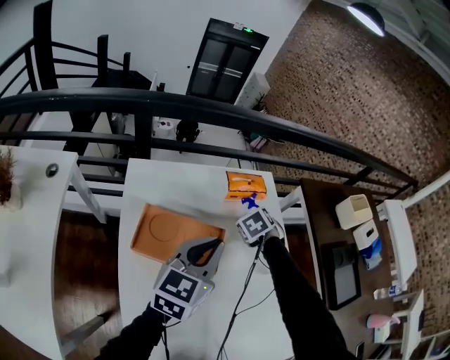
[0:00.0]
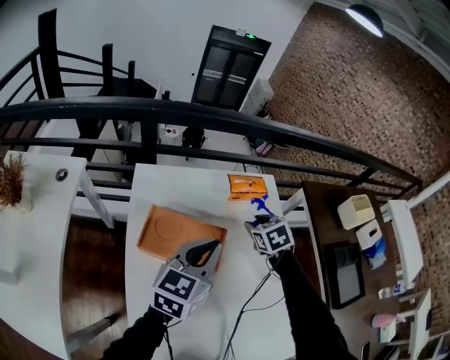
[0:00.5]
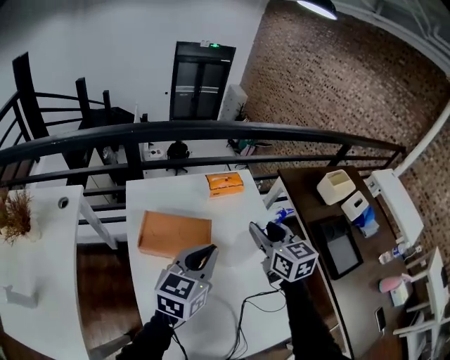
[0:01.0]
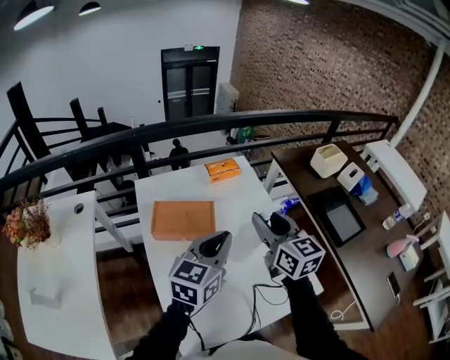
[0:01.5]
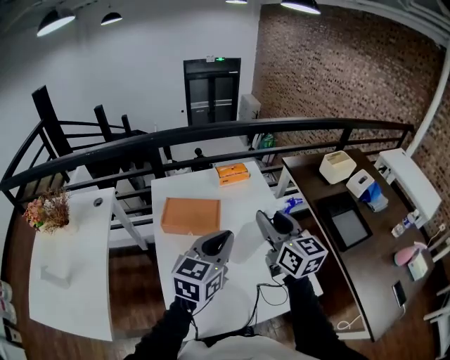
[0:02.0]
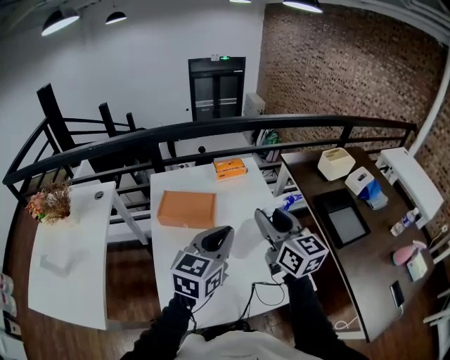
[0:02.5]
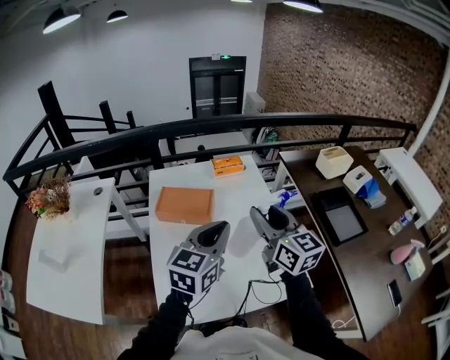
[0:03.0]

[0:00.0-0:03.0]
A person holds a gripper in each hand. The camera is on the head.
0:00.0 to 0:01.5: The right gripper shifts roughly 50 cm backward and upward, and points its fingers approximately 60 degrees further upward. The left gripper shifts approximately 35 cm backward, upward and to the right.
0:01.5 to 0:03.0: Both grippers travel together backward and to the right, approximately 20 cm.

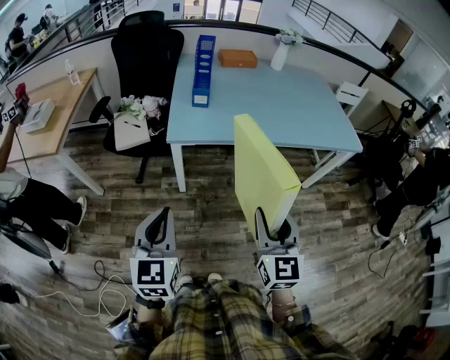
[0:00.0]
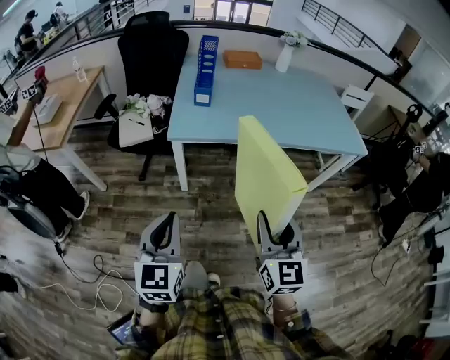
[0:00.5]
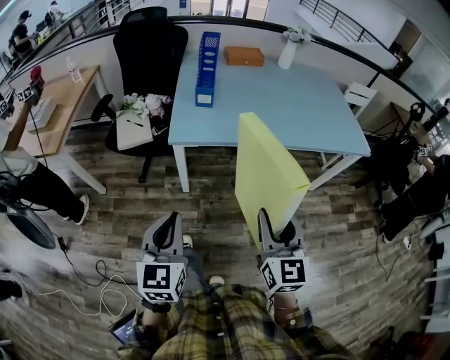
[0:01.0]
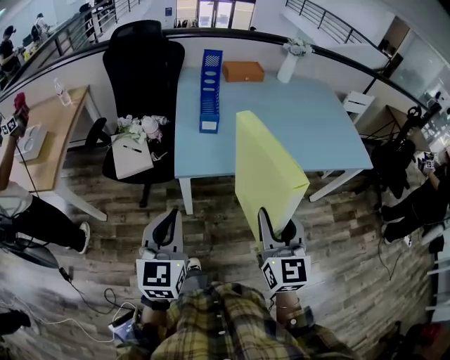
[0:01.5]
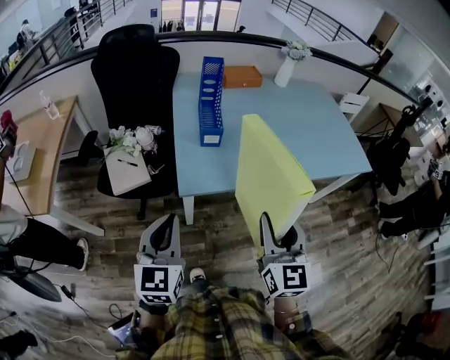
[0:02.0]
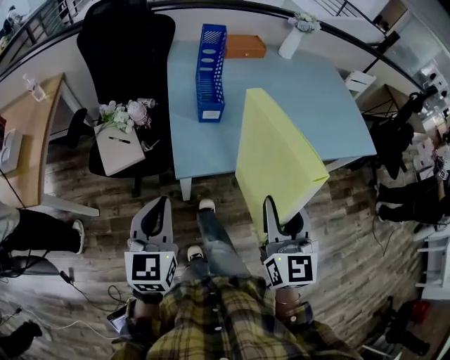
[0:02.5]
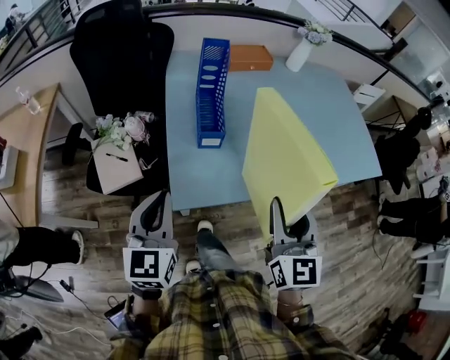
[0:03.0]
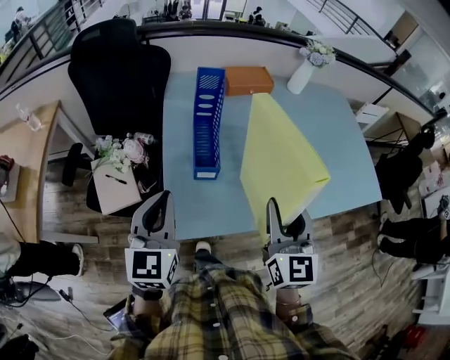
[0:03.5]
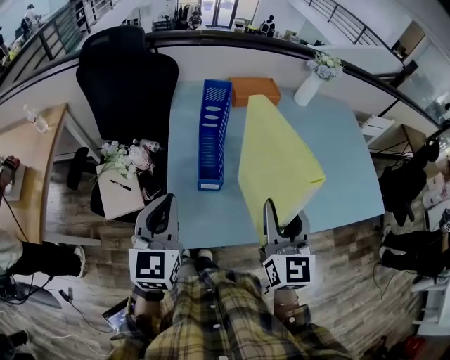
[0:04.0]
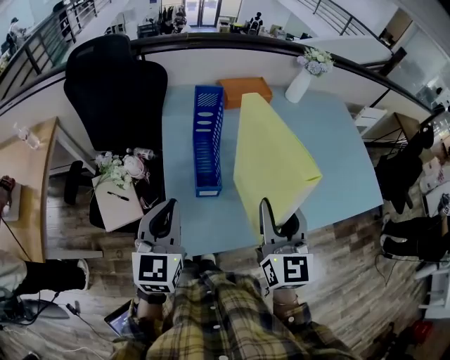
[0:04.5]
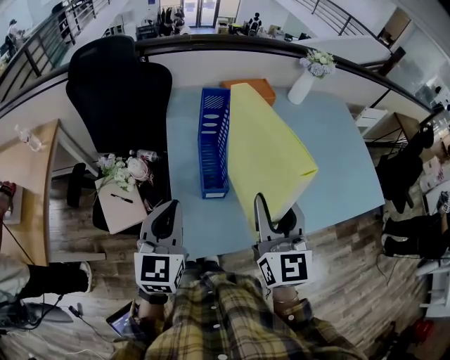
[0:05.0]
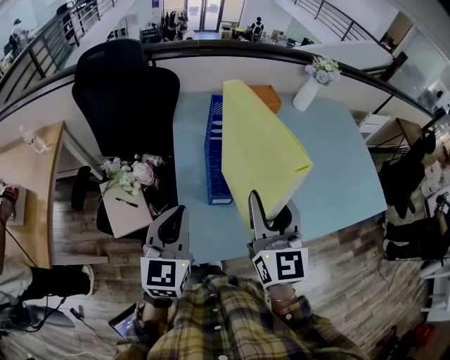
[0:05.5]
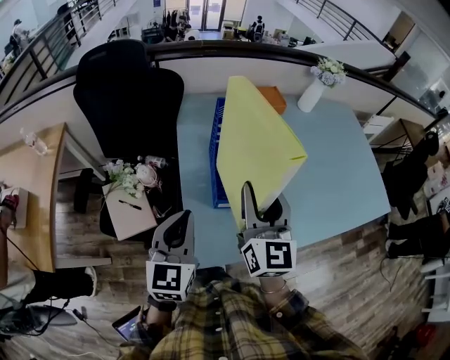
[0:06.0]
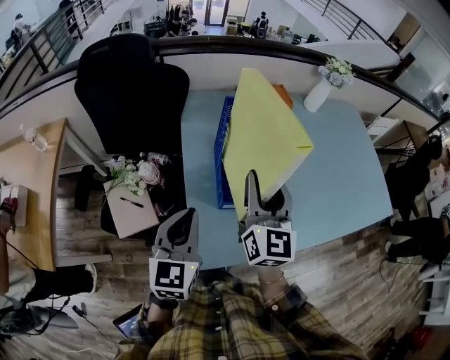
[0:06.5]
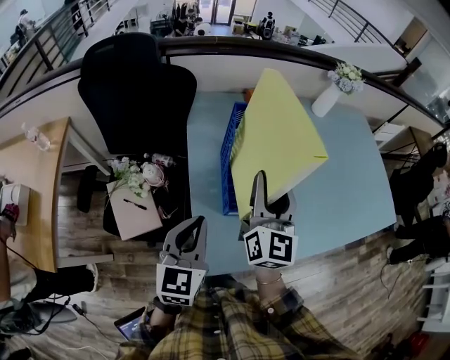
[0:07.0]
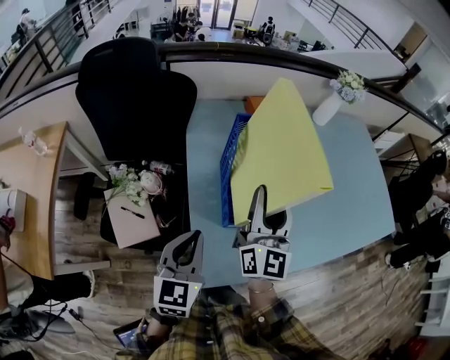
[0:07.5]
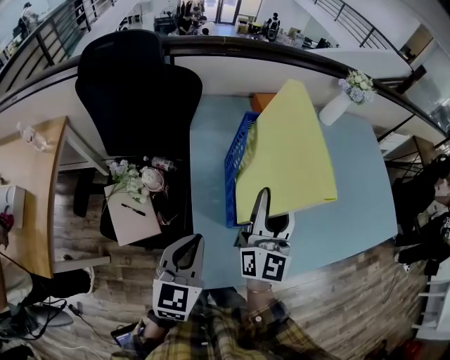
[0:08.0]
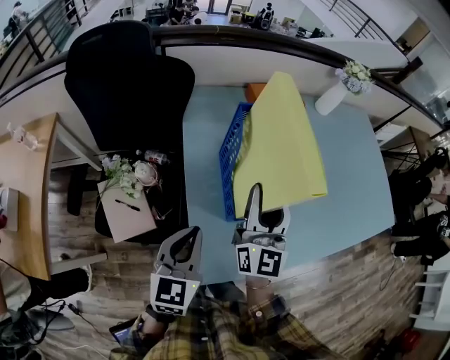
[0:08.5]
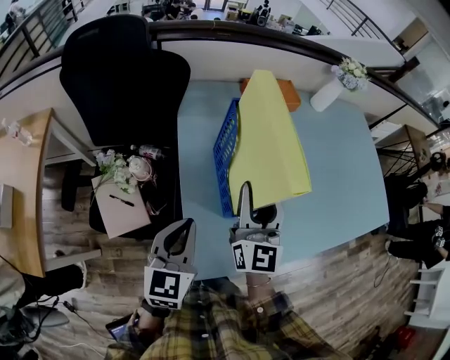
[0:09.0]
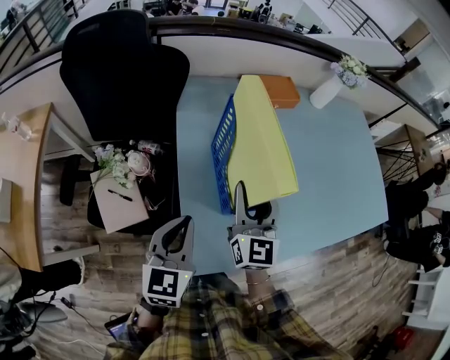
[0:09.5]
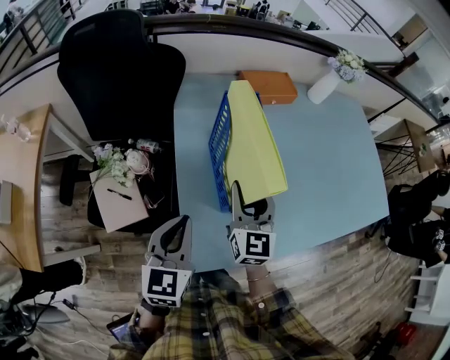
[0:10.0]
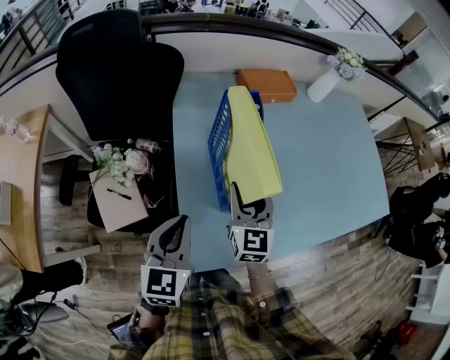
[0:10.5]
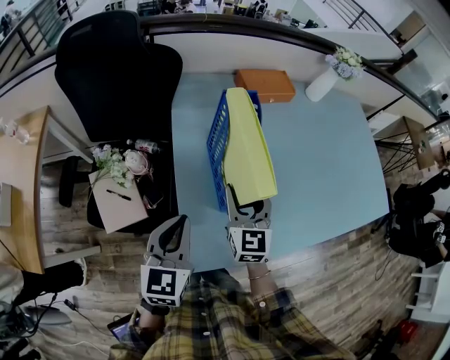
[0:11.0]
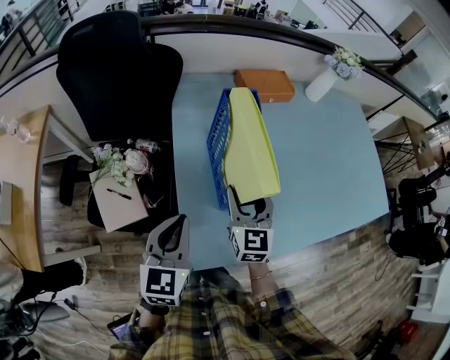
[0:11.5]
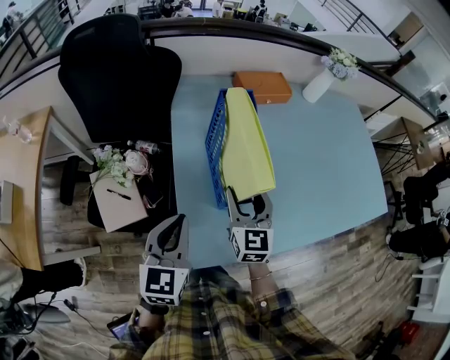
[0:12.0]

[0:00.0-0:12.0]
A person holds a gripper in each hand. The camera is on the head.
0:00.0 to 0:02.0: The grippers both shift forward and to the left by some 25 cm.
0:02.0 to 0:04.0: Both grippers move forward, some 25 cm.
0:04.0 to 0:06.0: The right gripper heads to the left and forward, covering roughly 15 cm.
0:06.0 to 0:08.0: The left gripper goes roughly 5 cm downward; the right gripper moves forward, some 5 cm.
0:08.0 to 0:10.0: The right gripper is displaced downward by some 10 cm, and swivels about 30 degrees.
0:10.0 to 0:12.0: The grippers stay close to where they were, moving slightly.

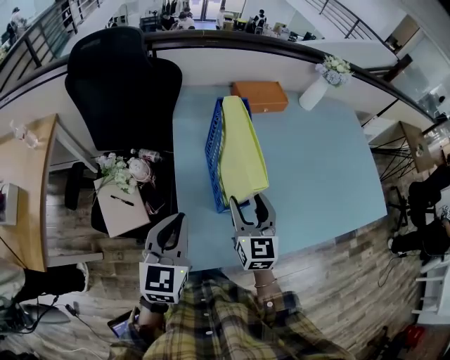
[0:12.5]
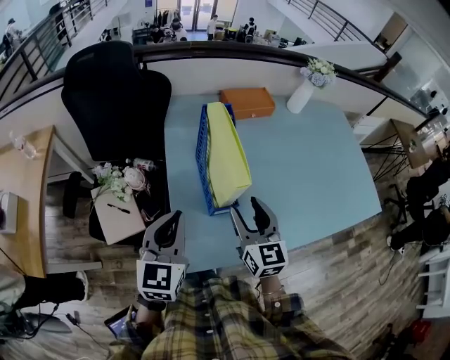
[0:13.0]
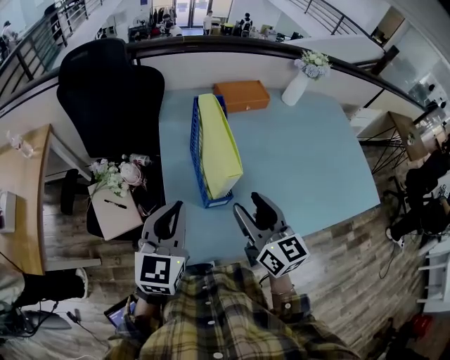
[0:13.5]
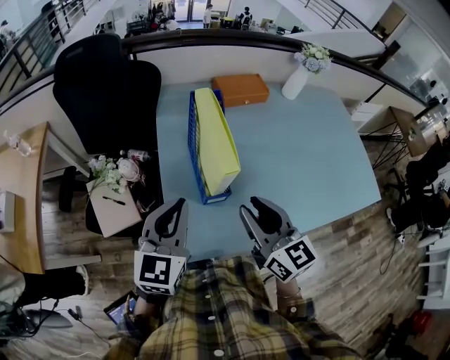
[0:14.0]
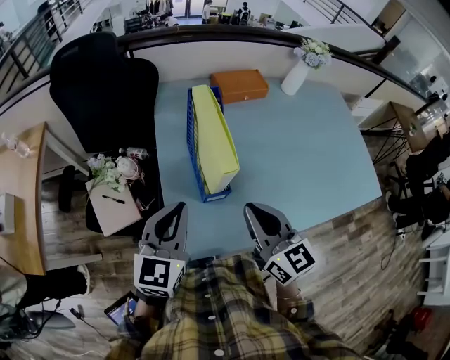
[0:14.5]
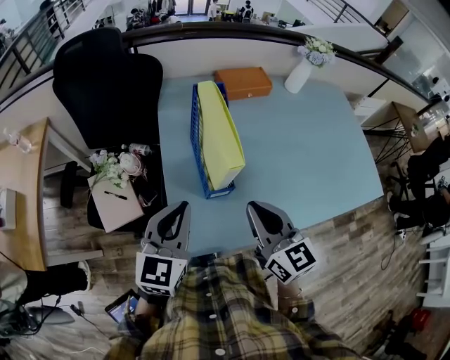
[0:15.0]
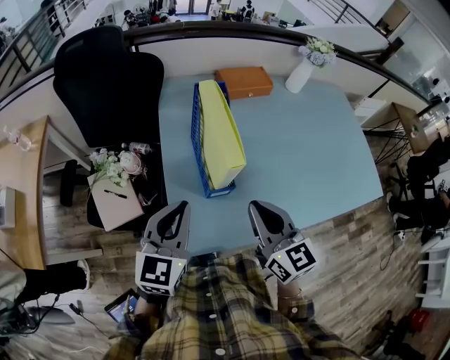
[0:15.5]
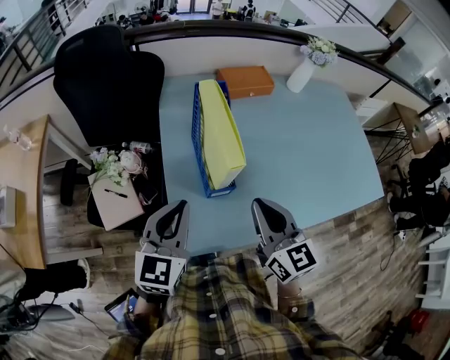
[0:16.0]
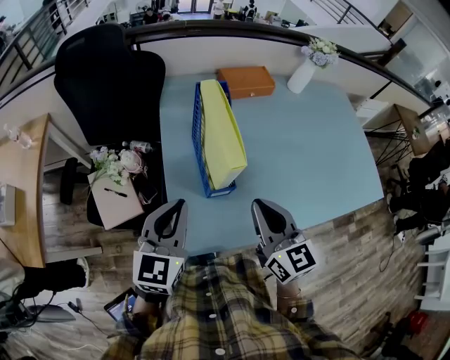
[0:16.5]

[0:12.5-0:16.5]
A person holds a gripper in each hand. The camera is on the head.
0:12.5 to 0:14.5: The left gripper travels to the right by roughly 5 cm; the right gripper heads upward and backward, covering approximately 10 cm, rotates some 20 degrees, and closes.
0:14.5 to 0:16.5: The grippers stay close to where they were, moving slightly.

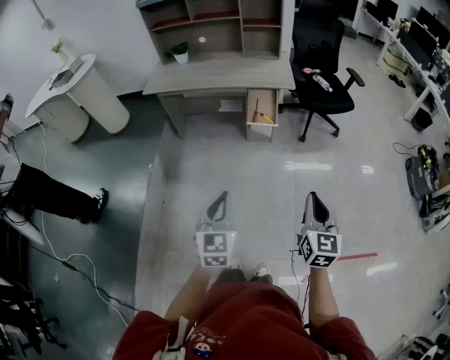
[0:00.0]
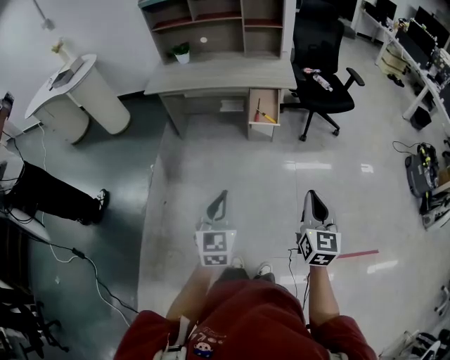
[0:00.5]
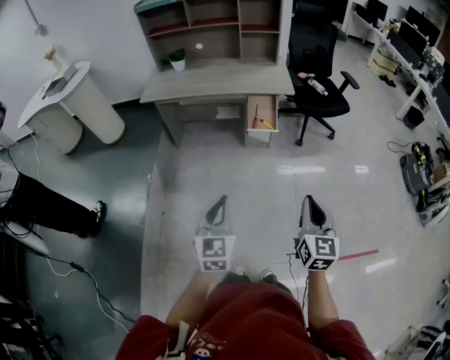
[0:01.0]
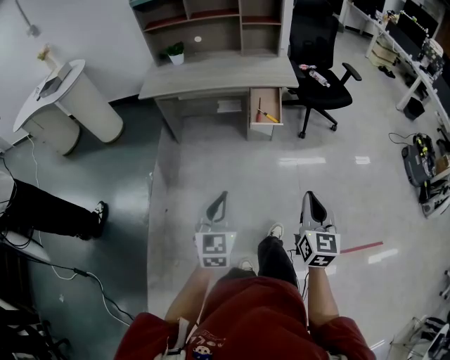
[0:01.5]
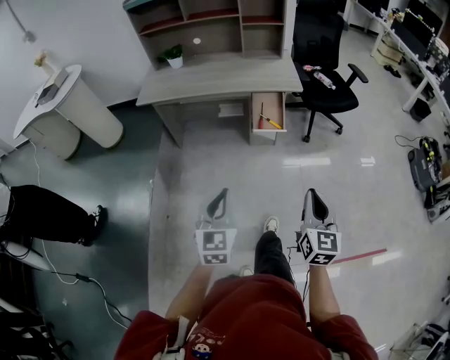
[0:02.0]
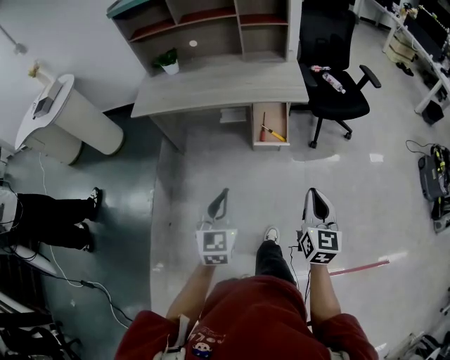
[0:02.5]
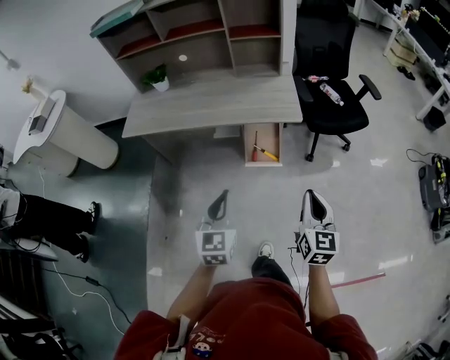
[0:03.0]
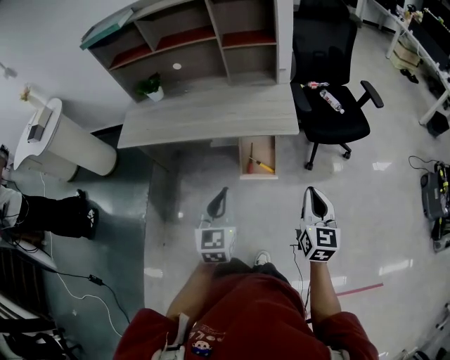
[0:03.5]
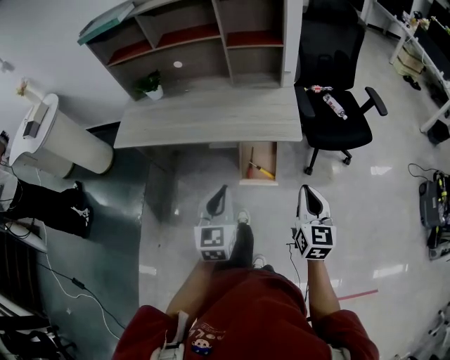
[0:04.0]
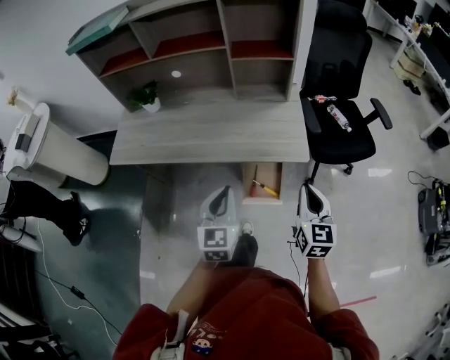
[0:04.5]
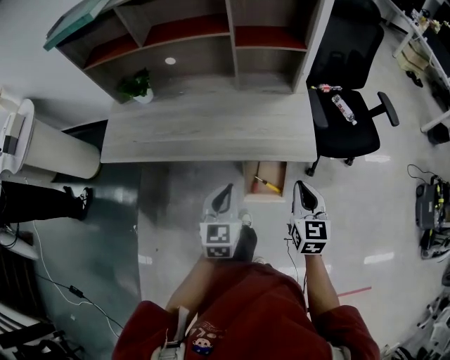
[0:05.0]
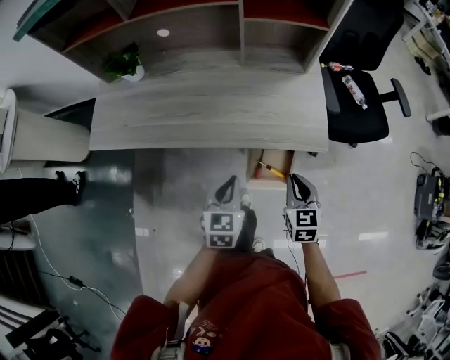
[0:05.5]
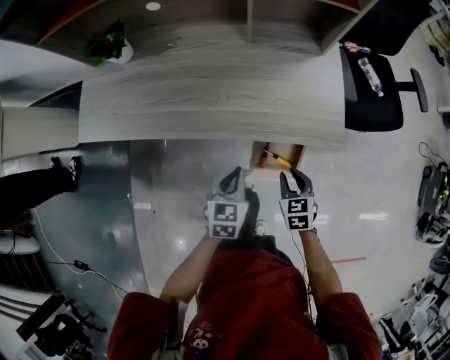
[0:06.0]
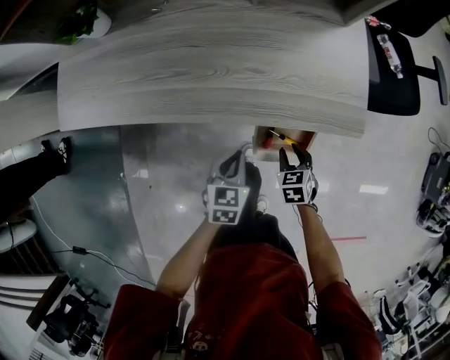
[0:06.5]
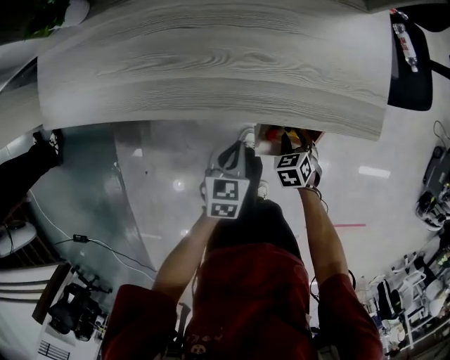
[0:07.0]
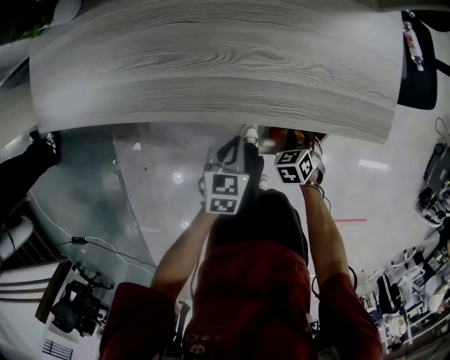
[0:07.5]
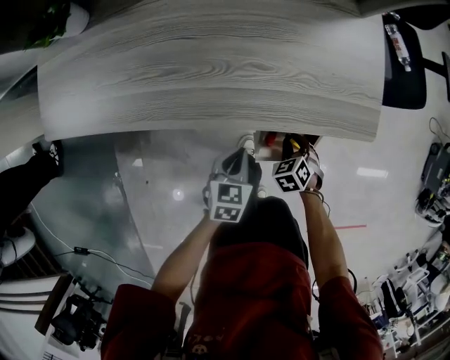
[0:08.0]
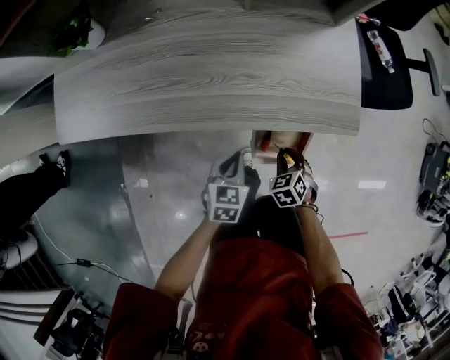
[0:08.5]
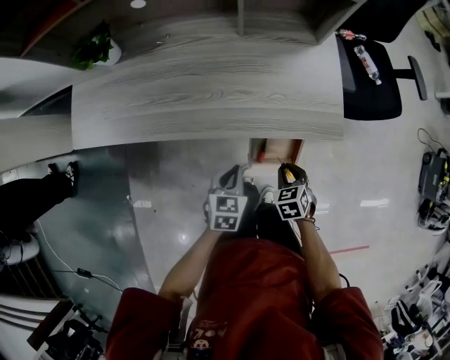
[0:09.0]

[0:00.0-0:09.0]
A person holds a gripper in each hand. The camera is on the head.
0:00.0 to 0:02.0: The left gripper travels forward and to the left by approximately 15 cm. The right gripper shifts about 15 cm to the left and forward.
0:02.0 to 0:04.5: The pair of grippers is taken forward, approximately 50 cm.
0:04.5 to 0:07.0: Both grippers travel together downward, roughly 40 cm. The right gripper angles its fingers downward, by approximately 50 degrees, and opens. The left gripper angles its fingers downward, by some 30 degrees.
0:07.0 to 0:09.0: Both grippers move upward, about 15 cm.
